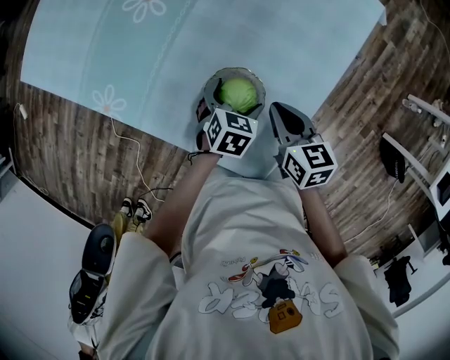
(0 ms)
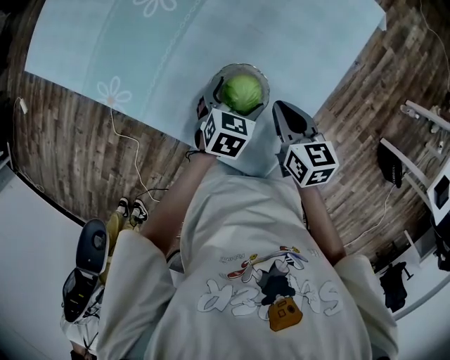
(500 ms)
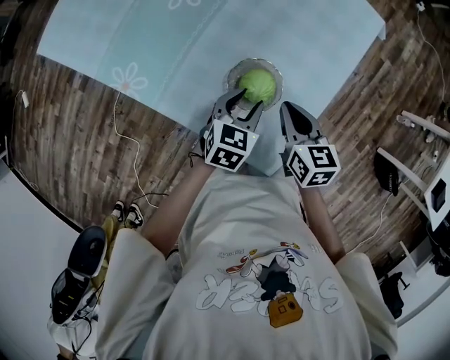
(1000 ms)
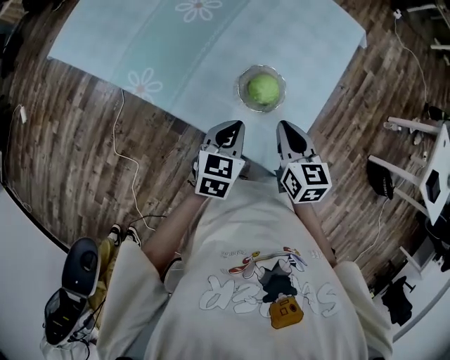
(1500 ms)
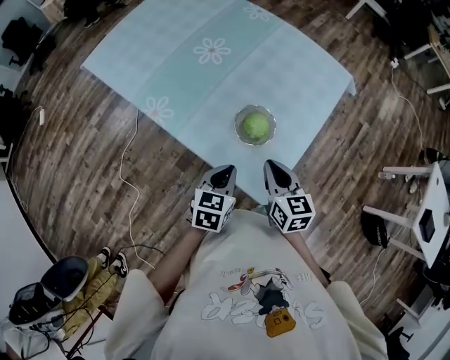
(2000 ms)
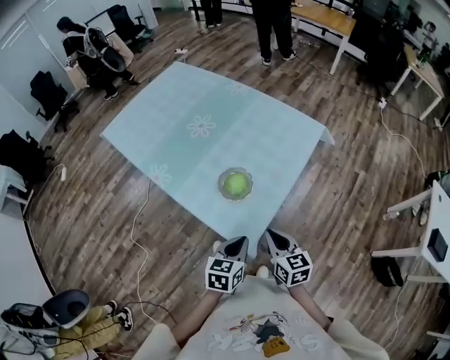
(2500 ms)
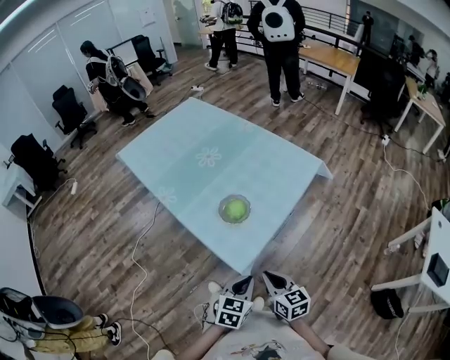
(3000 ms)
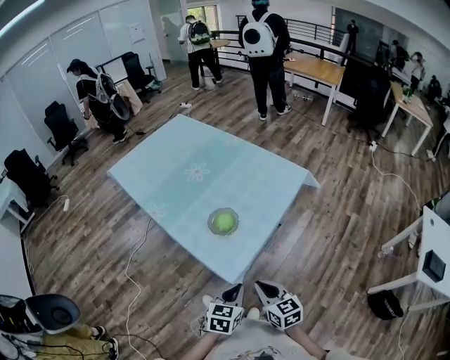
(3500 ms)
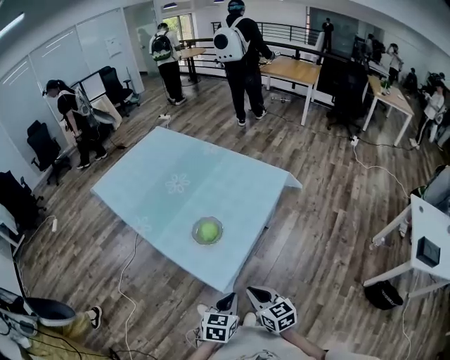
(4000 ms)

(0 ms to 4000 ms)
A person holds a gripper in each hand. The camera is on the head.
0 ms - 2000 ms: The left gripper is displaced backward, upward and to the left by some 25 cm, swivels about 30 degrees, and closes. The right gripper heads backward and upward, covering about 15 cm.
2000 ms - 4000 ms: The left gripper moves to the right and backward, about 25 cm; the right gripper moves backward and to the right, about 20 cm.

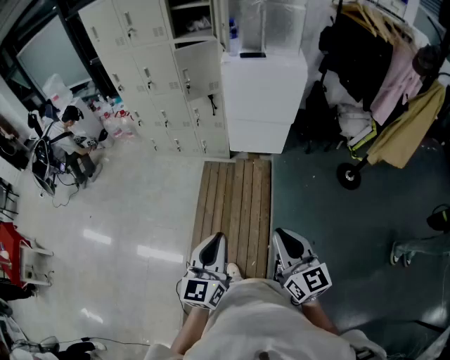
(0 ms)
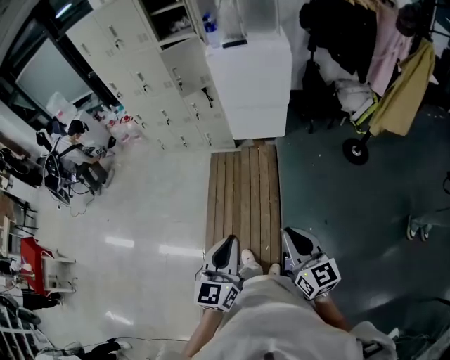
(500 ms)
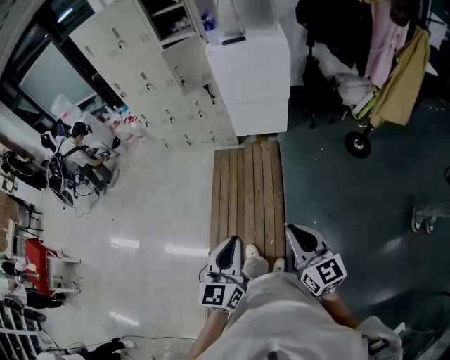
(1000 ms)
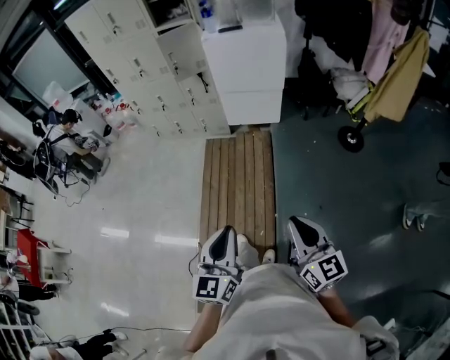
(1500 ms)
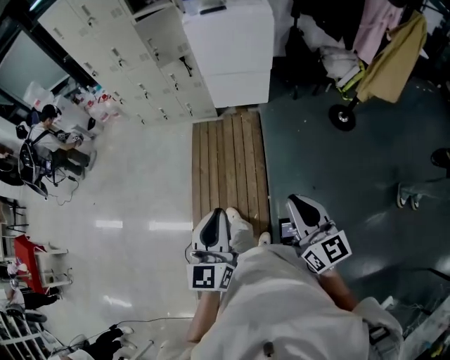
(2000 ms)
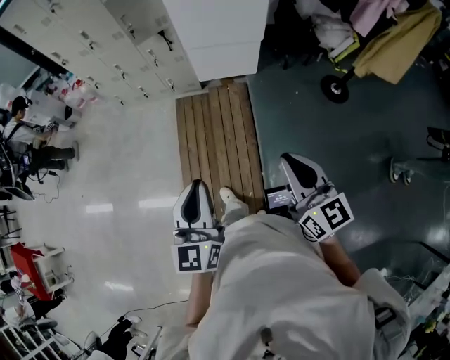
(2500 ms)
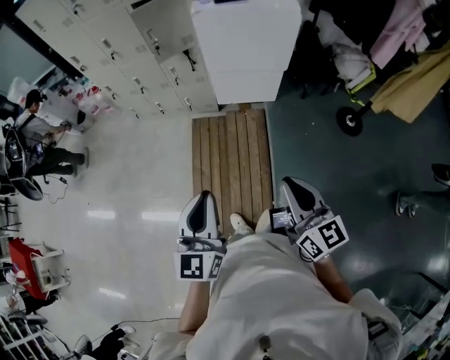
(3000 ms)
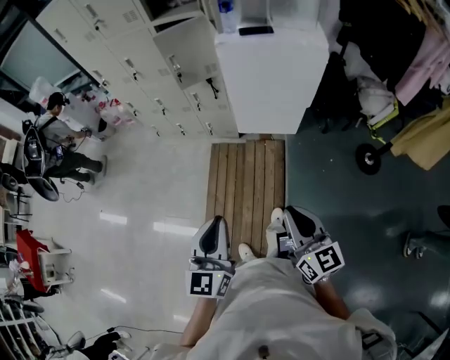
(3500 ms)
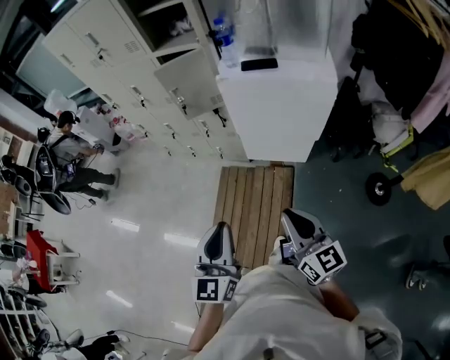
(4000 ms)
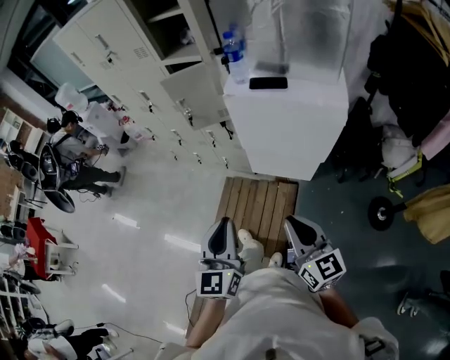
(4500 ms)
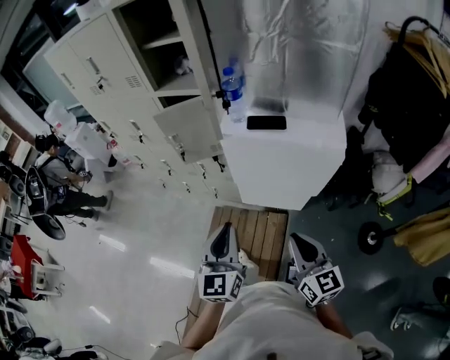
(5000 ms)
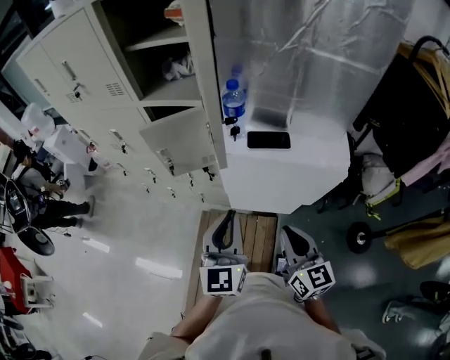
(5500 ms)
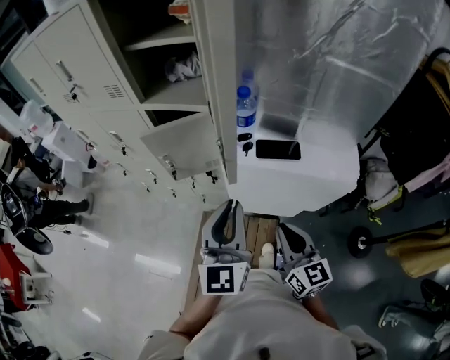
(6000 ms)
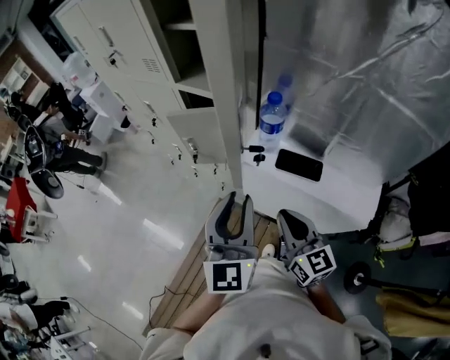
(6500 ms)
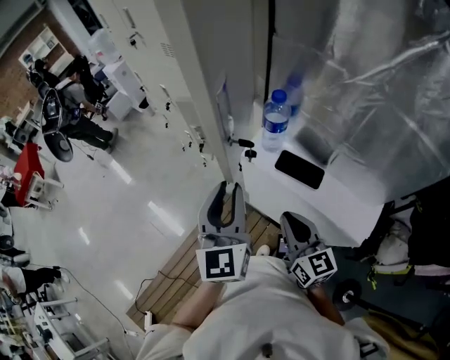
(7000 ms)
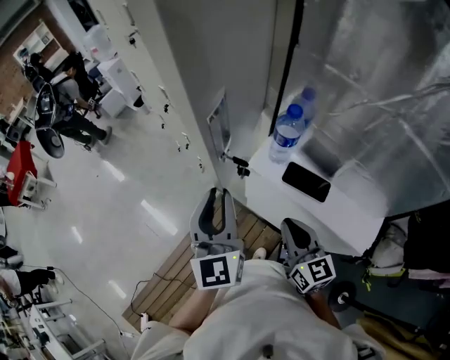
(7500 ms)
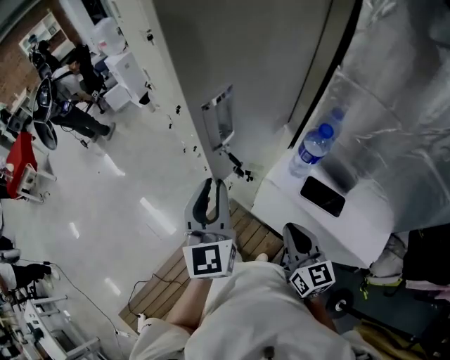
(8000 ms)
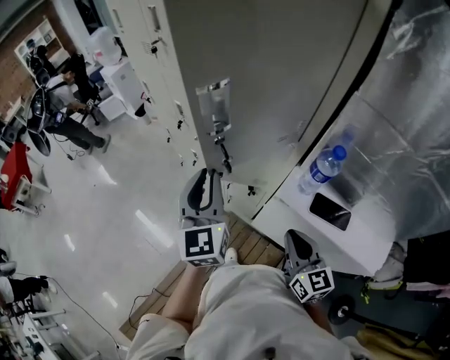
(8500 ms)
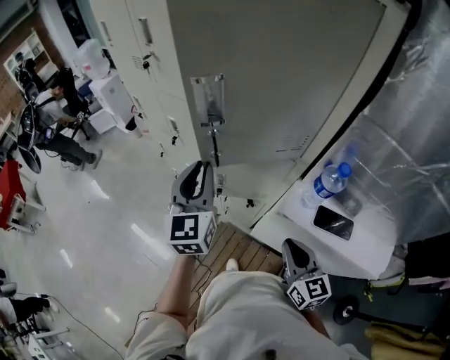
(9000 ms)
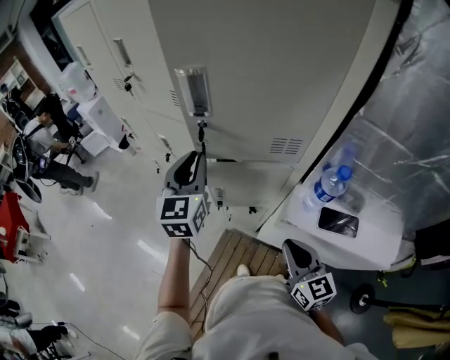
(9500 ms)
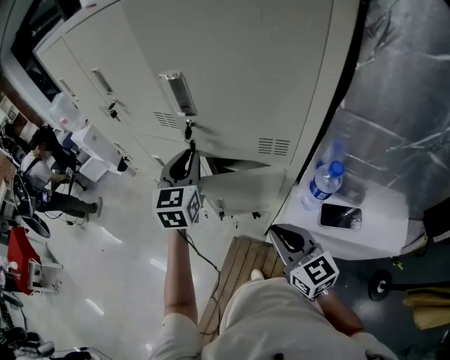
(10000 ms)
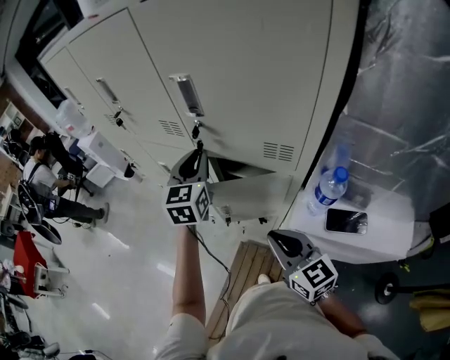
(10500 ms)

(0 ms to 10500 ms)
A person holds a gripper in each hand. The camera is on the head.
0 ms - 2000 ms: Both grippers travel together backward and to the right, about 15 cm.
2000 ms - 4000 ms: Both grippers are carried forward, some 40 cm.
4000 ms - 6500 ms: The two grippers travel together, forward, roughly 40 cm.
6500 ms - 8500 ms: The right gripper heads forward, covering approximately 10 cm; the left gripper heads forward and to the left, covering some 25 cm.
8500 ms - 10500 ms: The left gripper goes roughly 25 cm forward, and changes its angle by roughly 20 degrees. The right gripper moves forward and to the left, about 15 cm.

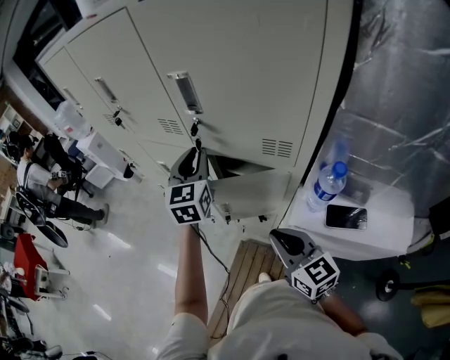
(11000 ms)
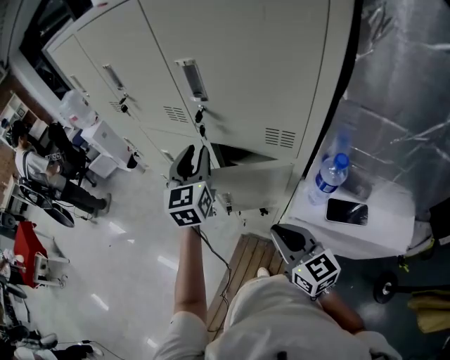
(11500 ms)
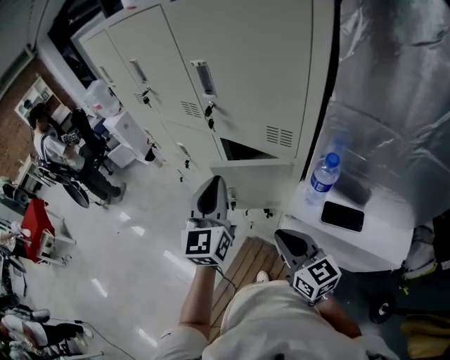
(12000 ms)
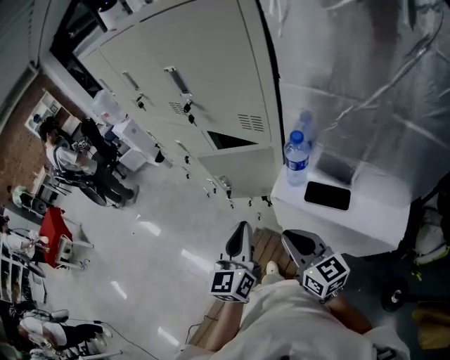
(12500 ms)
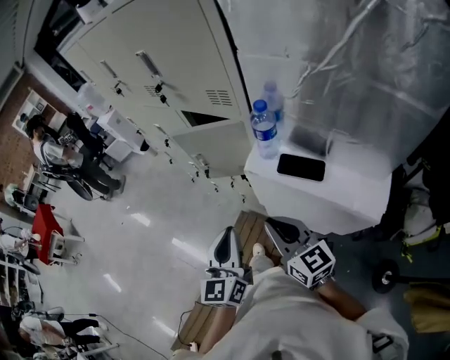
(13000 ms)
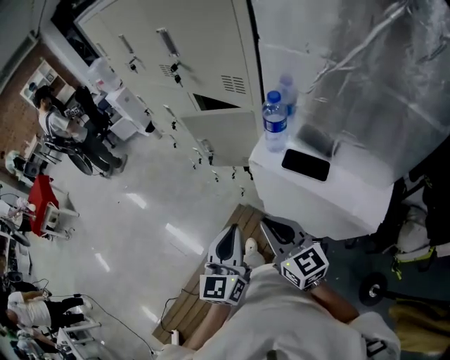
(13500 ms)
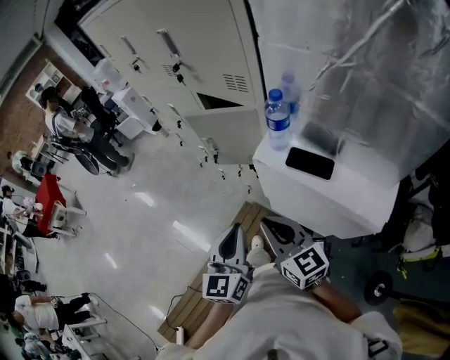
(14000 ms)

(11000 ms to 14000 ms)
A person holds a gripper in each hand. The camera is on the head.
11000 ms - 12500 ms: The right gripper shifts some 15 cm backward and to the right; the left gripper travels backward by roughly 35 cm.
12500 ms - 14000 ms: The left gripper heads backward, covering some 10 cm; the right gripper is displaced backward by about 5 cm.

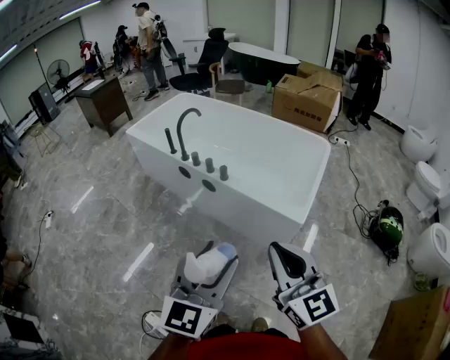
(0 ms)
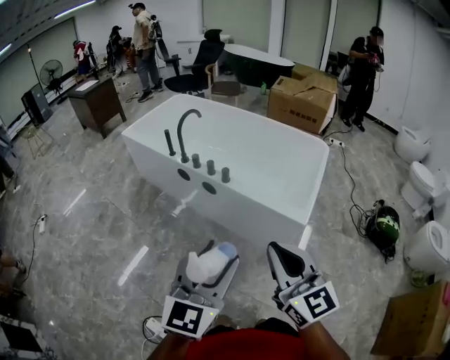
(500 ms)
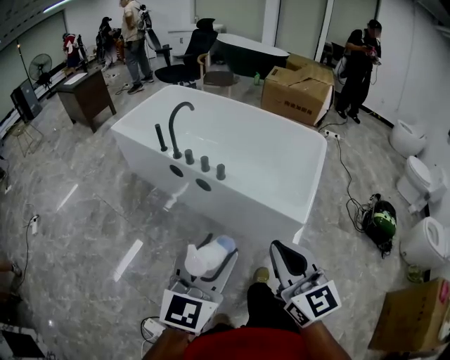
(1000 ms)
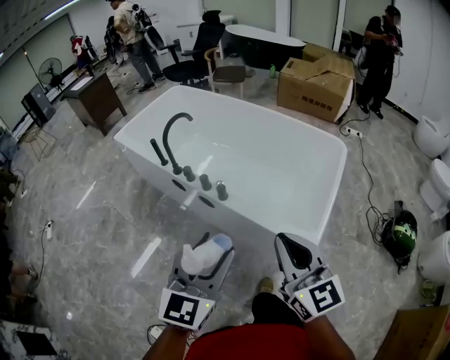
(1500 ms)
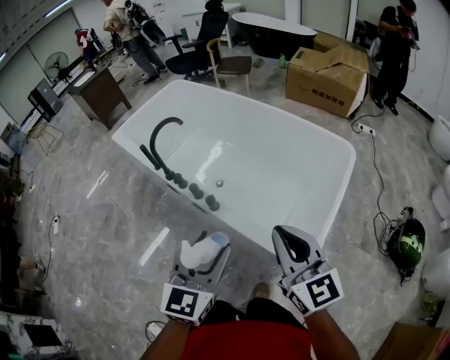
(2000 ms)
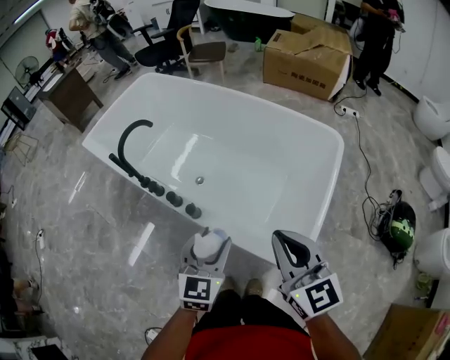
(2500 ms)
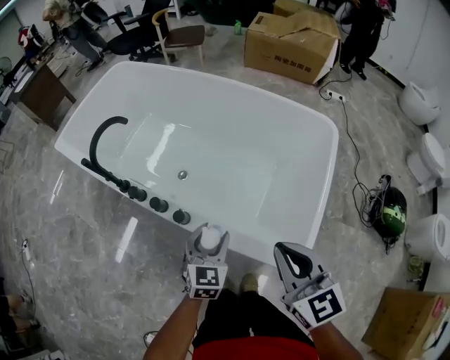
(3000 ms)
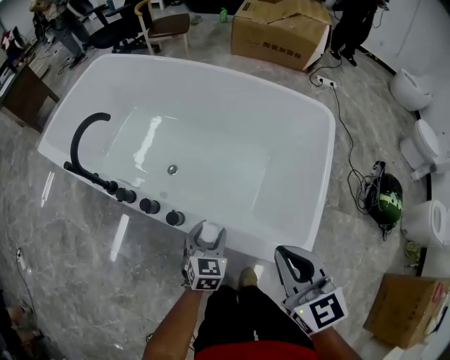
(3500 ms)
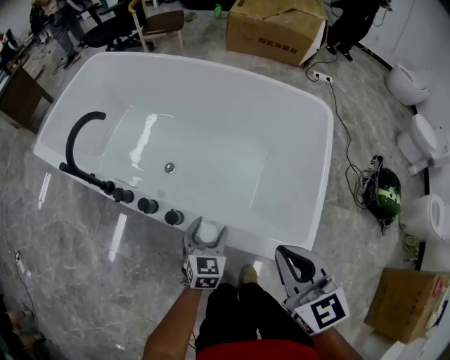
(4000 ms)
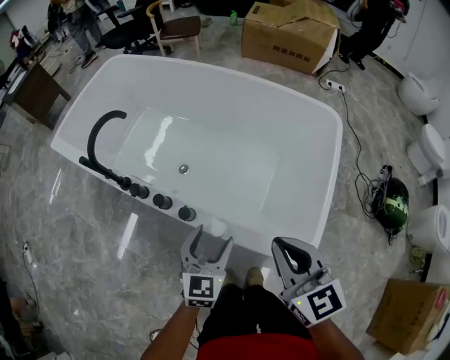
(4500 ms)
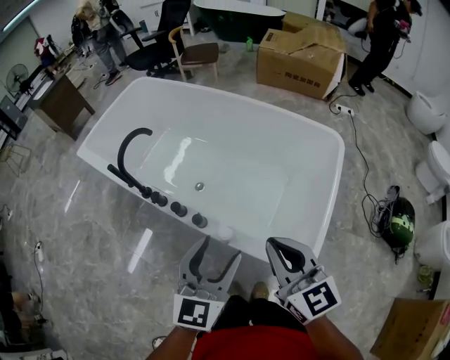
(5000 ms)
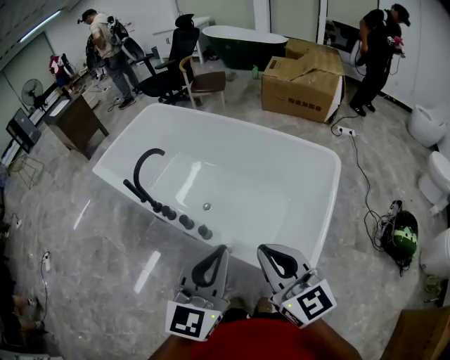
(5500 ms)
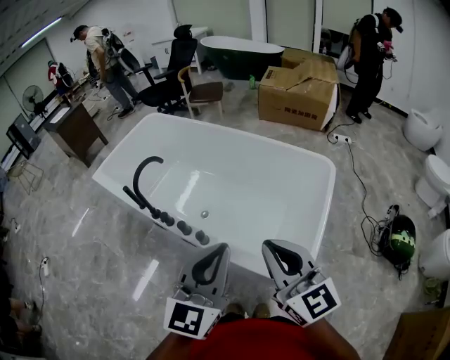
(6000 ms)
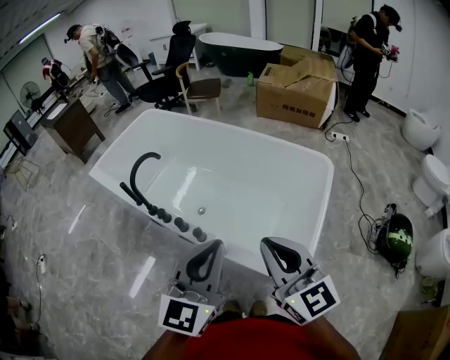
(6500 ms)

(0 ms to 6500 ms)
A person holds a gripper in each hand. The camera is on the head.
0 ms - 2000 ms: Both grippers travel together forward, roughly 35 cm.
2000 ms - 4500 ms: The left gripper moves downward and forward, some 30 cm. The right gripper shifts roughly 15 cm downward and forward, and changes its angle by approximately 20 degrees.
4500 ms - 6500 ms: The right gripper is displaced upward by roughly 15 cm, and turns by approximately 20 degrees, while the left gripper is displaced upward by roughly 30 cm, rotates some 20 degrees, and closes.

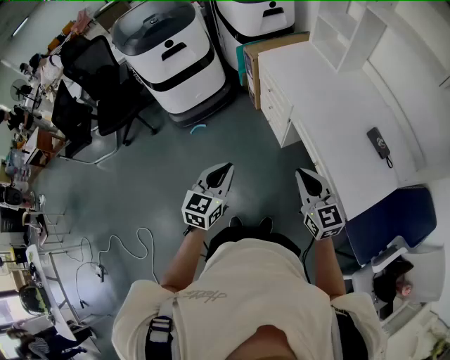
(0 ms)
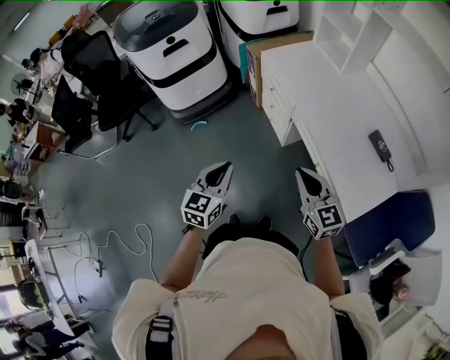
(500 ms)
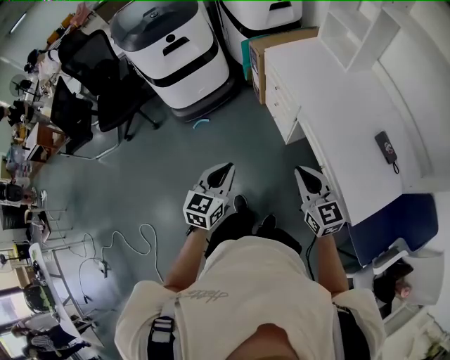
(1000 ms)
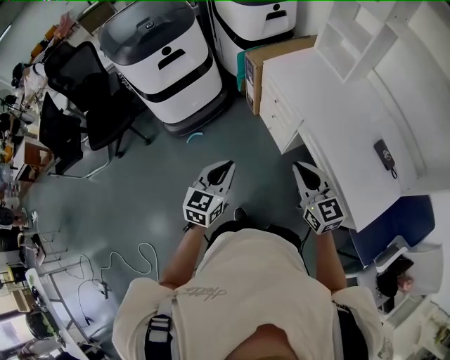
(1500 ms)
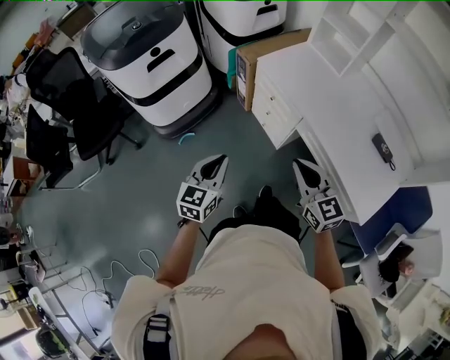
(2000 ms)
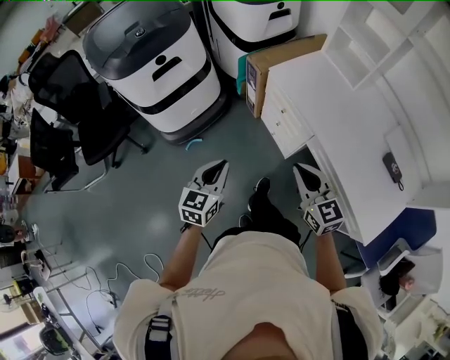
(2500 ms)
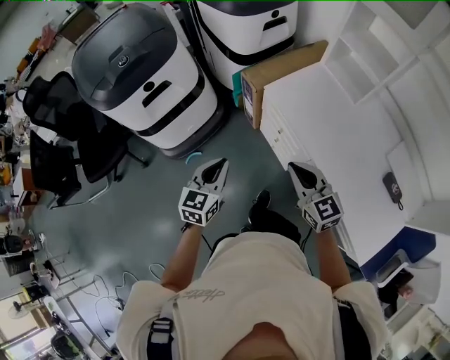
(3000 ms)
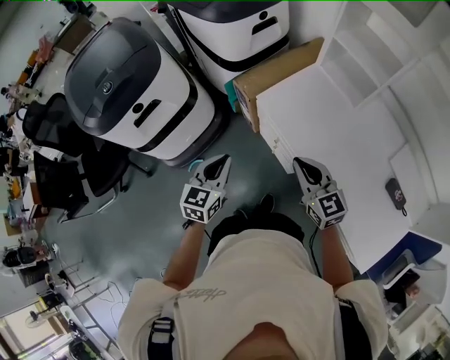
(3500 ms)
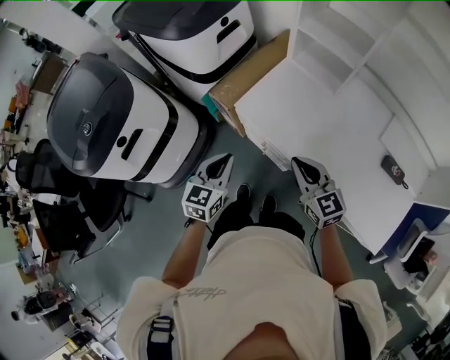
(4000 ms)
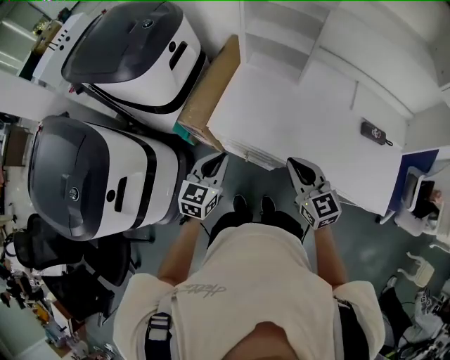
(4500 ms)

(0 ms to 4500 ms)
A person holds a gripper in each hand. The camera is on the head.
0 ms - 2000 ms: Both grippers travel together forward and to the left, approximately 20 cm.
2000 ms - 4500 ms: The left gripper shifts by some 40 cm, and changes its angle by roughly 30 degrees. The right gripper ends up roughly 35 cm from where it was, and turns by roughly 30 degrees.
